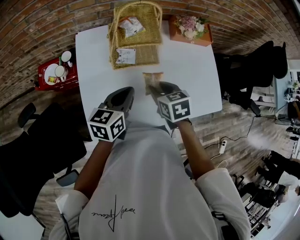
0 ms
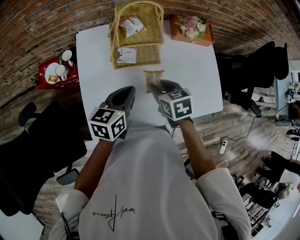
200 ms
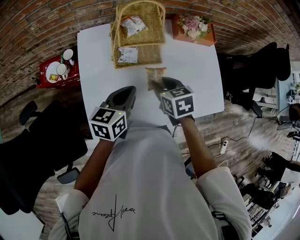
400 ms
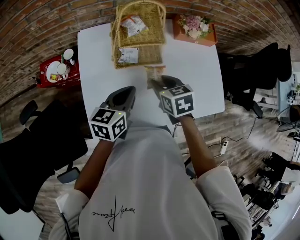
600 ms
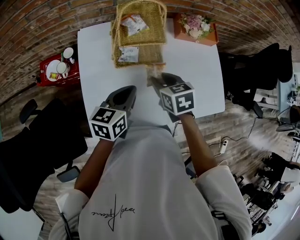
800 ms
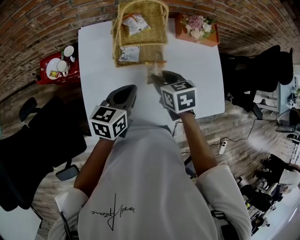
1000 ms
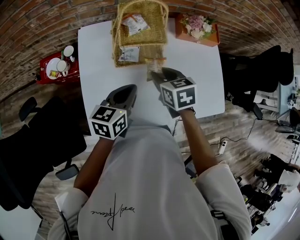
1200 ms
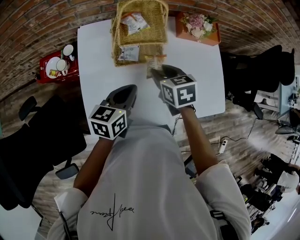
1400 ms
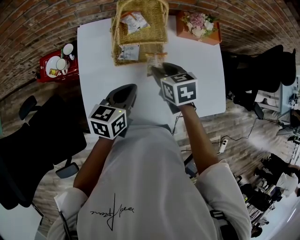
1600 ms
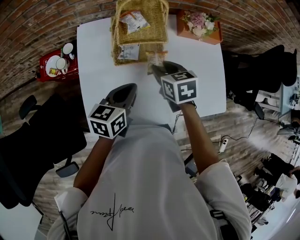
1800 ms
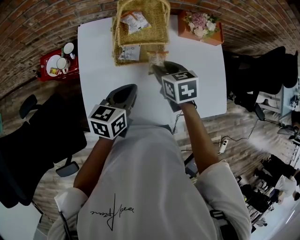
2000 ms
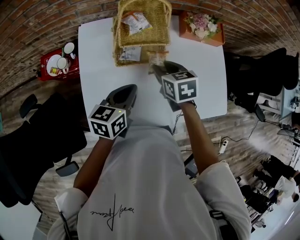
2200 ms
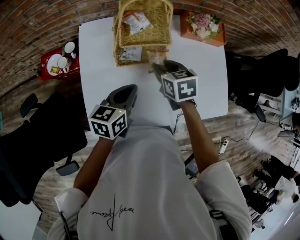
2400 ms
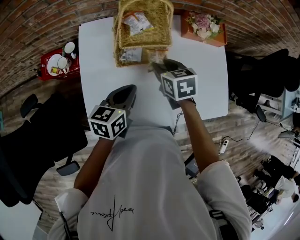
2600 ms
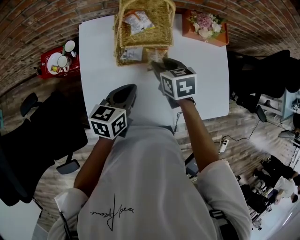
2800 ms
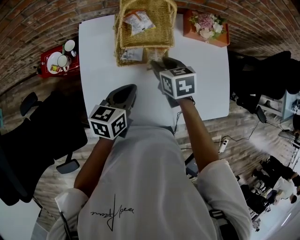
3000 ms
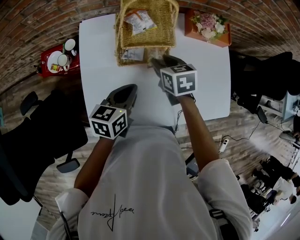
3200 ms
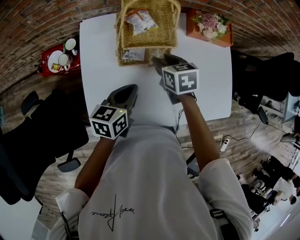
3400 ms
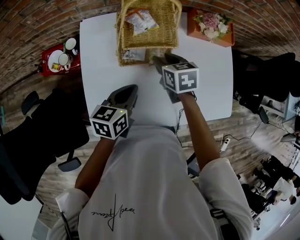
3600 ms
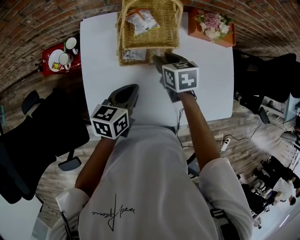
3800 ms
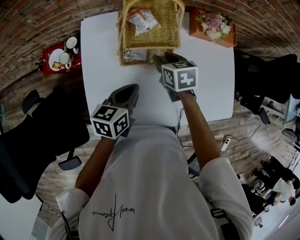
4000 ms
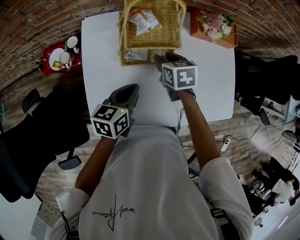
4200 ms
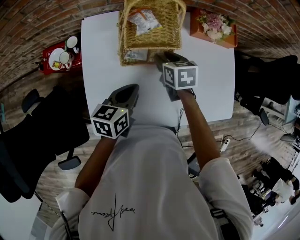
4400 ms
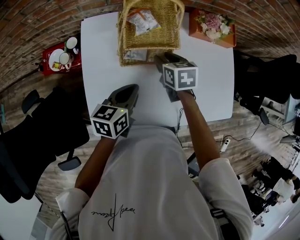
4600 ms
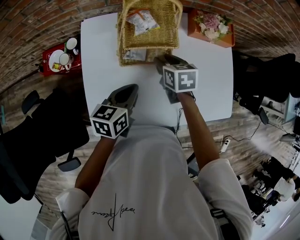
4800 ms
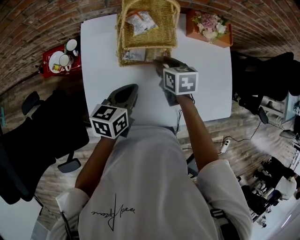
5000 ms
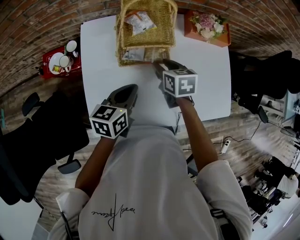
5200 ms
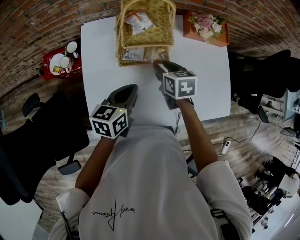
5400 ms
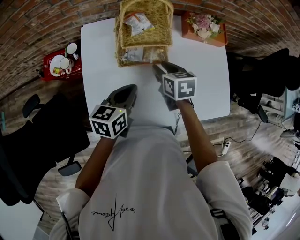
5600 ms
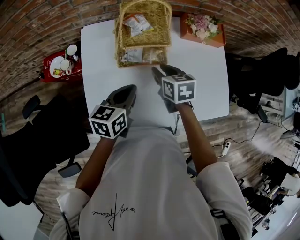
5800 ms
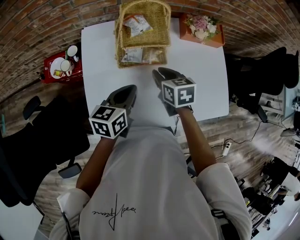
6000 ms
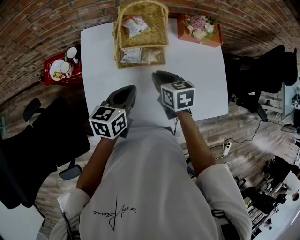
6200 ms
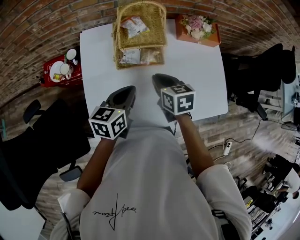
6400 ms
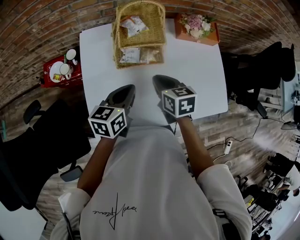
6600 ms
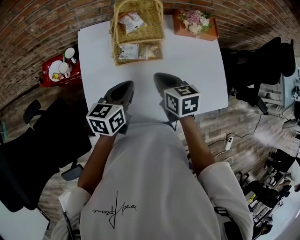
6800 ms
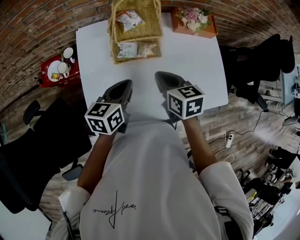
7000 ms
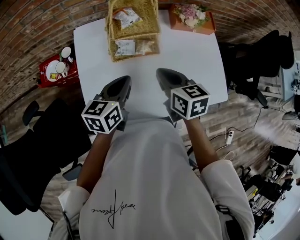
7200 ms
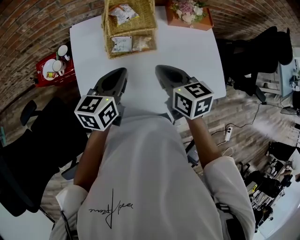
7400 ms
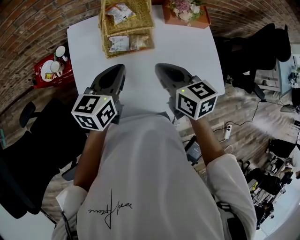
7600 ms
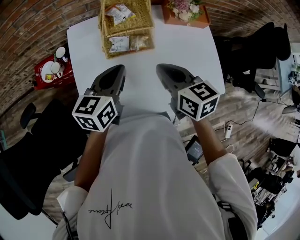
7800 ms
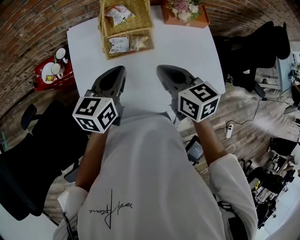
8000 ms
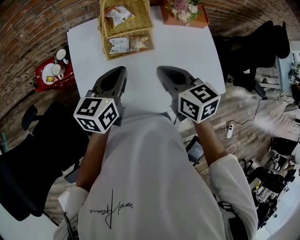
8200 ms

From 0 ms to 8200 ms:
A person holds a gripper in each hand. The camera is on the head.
From 0 ms to 1600 ms: The right gripper goes approximately 5 cm forward.
From 1600 ms to 3200 ms: The right gripper shifts by approximately 5 cm.
From 3200 ms to 5000 ms: The grippers make only small movements.
From 5000 ms to 6600 ms: The right gripper moves backward, some 10 cm, and closes its fingers.
From 6600 ms to 8200 ms: The left gripper heads upward, covering some 5 cm, while the right gripper is displaced upward by approximately 10 cm.

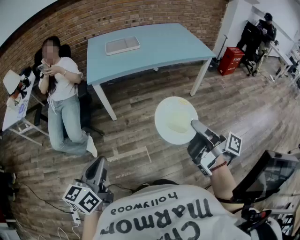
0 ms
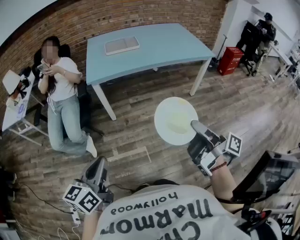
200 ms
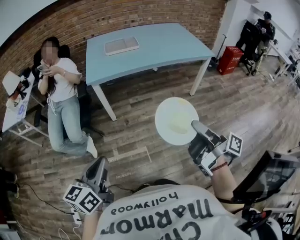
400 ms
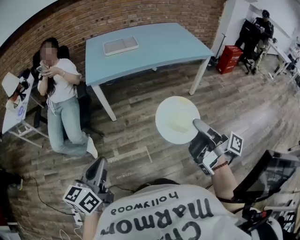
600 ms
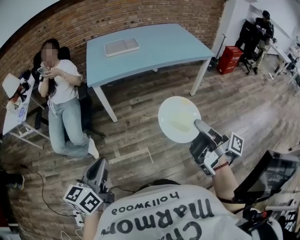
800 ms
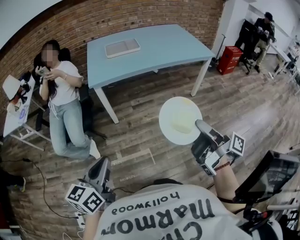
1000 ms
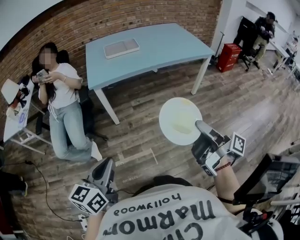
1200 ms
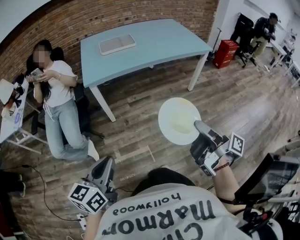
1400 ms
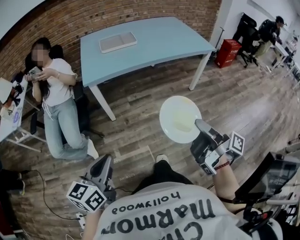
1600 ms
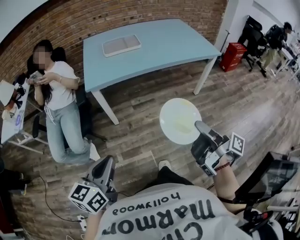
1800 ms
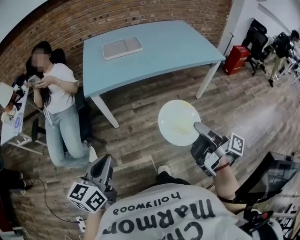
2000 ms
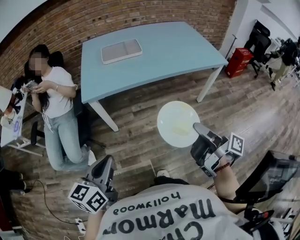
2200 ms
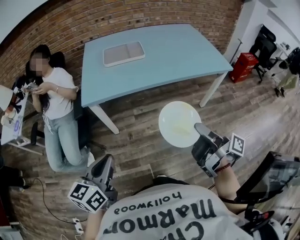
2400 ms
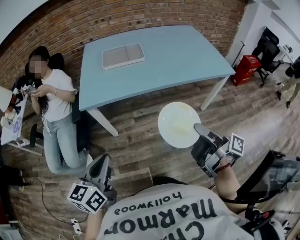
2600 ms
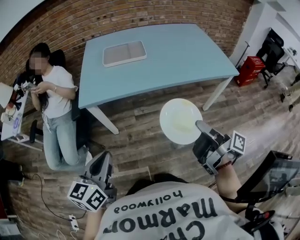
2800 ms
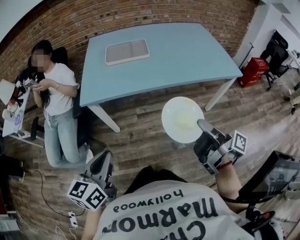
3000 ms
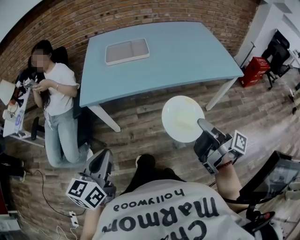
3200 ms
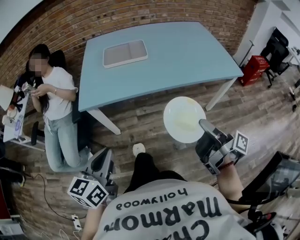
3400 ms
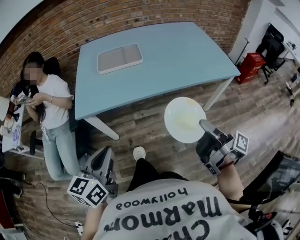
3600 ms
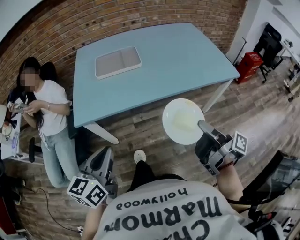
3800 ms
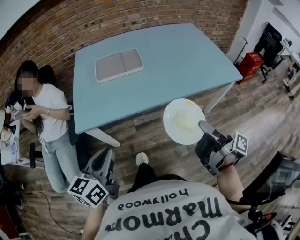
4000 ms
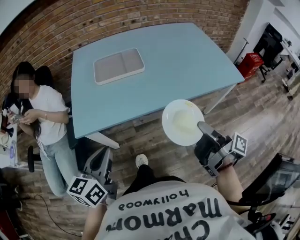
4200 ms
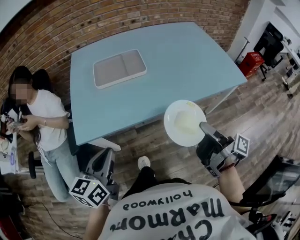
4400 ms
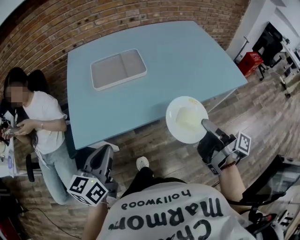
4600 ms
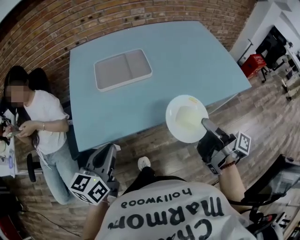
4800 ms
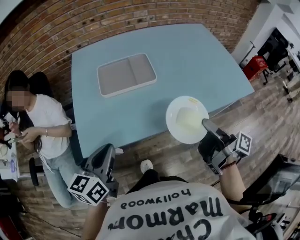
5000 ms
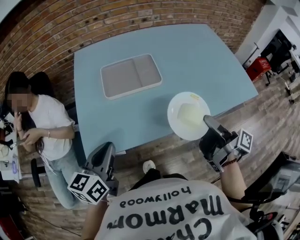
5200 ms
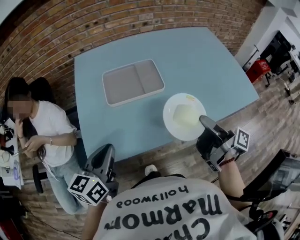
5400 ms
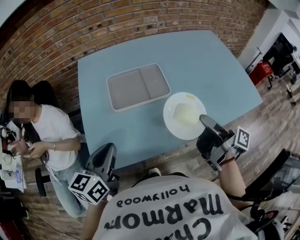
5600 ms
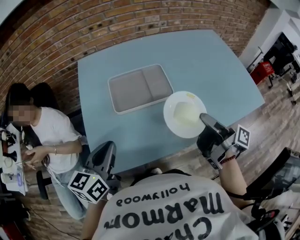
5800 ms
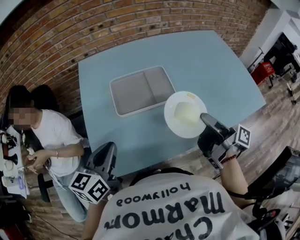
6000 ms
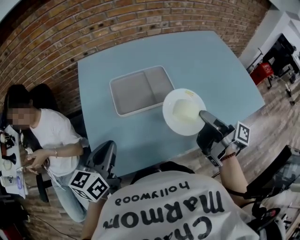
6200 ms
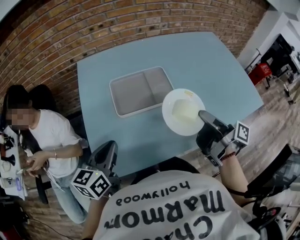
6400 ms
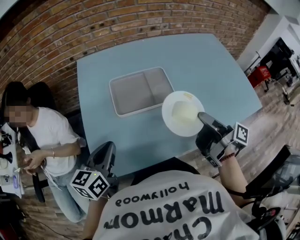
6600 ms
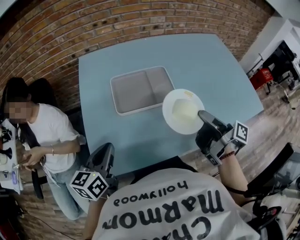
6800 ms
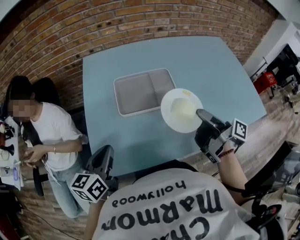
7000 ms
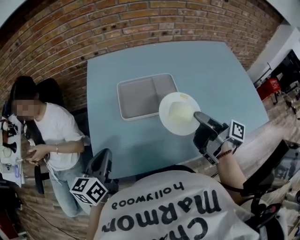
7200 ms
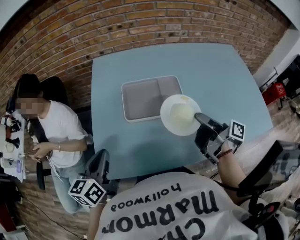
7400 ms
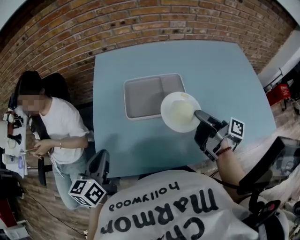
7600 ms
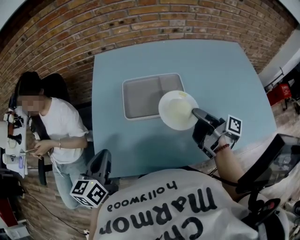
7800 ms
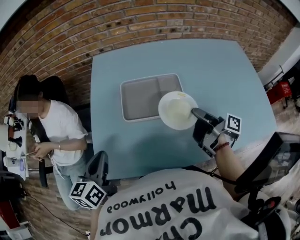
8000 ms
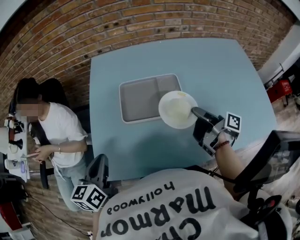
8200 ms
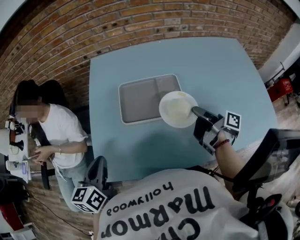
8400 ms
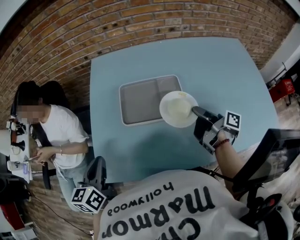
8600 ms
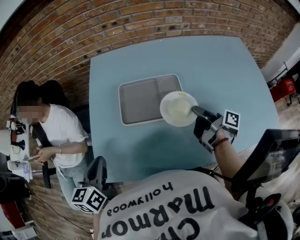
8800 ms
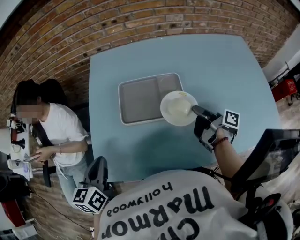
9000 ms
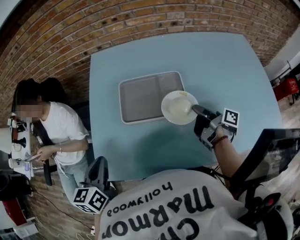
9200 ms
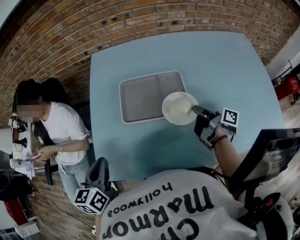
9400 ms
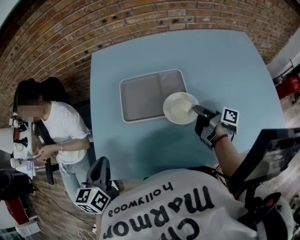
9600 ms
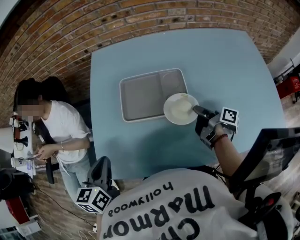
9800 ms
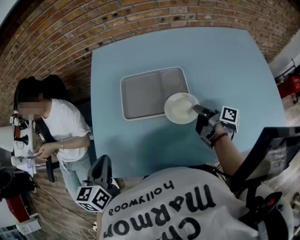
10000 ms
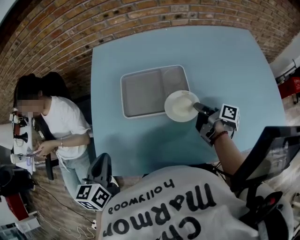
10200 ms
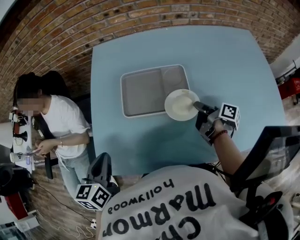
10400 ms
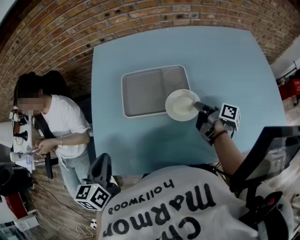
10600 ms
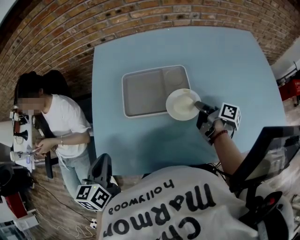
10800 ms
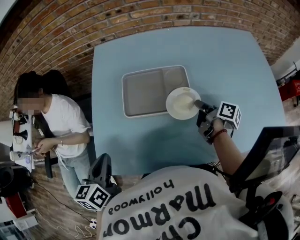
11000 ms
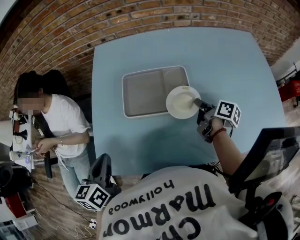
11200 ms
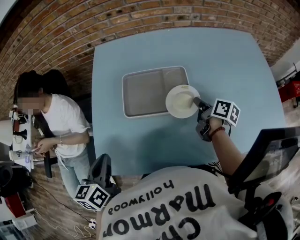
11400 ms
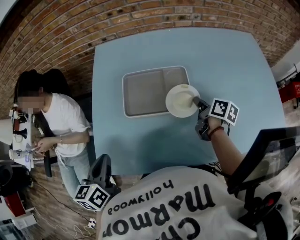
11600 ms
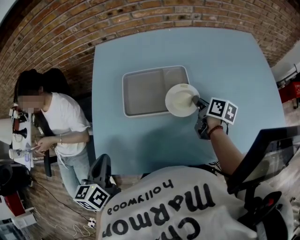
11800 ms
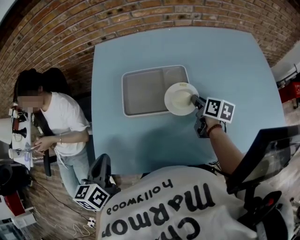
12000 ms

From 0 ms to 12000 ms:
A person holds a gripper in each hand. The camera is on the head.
From 0 ms to 1600 ms: The left gripper moves approximately 5 cm.
From 1600 ms to 3000 ms: The left gripper changes place by approximately 25 cm.
From 3000 ms to 4400 ms: The left gripper ends up about 25 cm from where it was.
From 4400 ms to 6000 ms: The left gripper changes place by roughly 25 cm.
From 6000 ms to 7600 ms: The left gripper ends up some 5 cm from where it was.

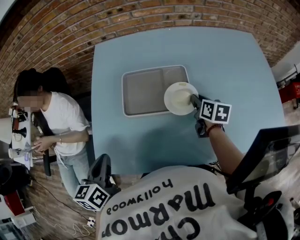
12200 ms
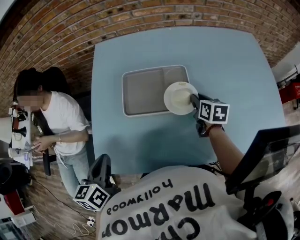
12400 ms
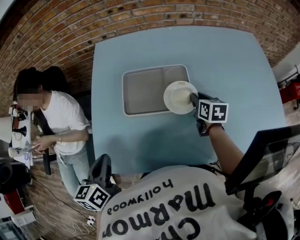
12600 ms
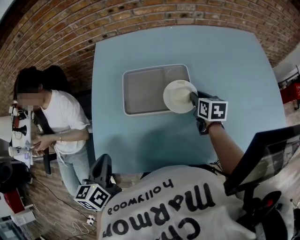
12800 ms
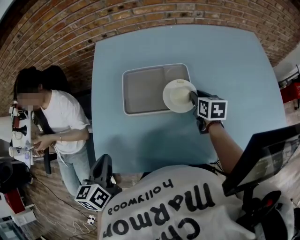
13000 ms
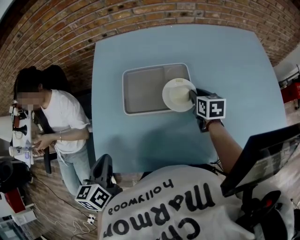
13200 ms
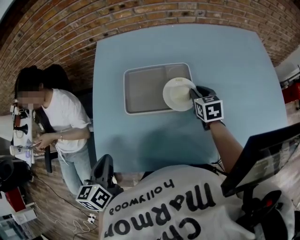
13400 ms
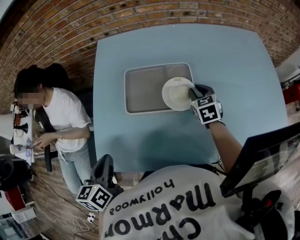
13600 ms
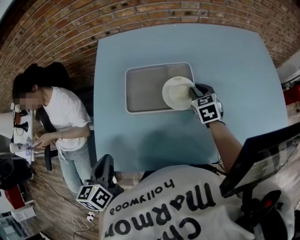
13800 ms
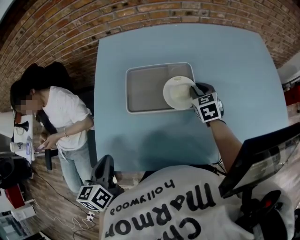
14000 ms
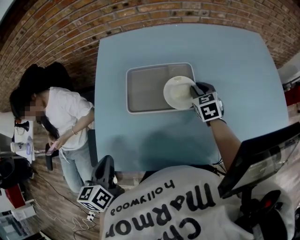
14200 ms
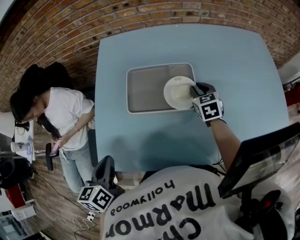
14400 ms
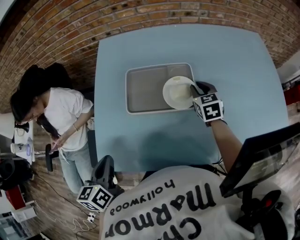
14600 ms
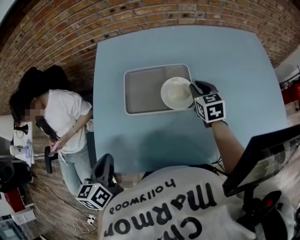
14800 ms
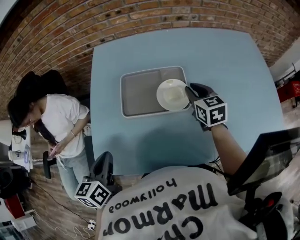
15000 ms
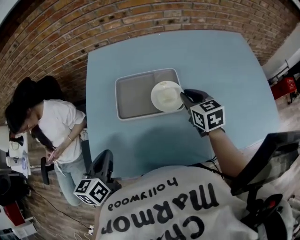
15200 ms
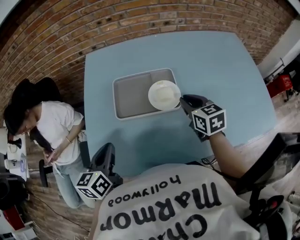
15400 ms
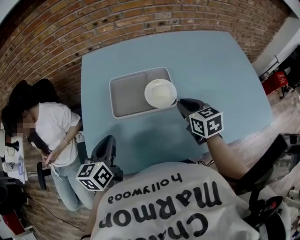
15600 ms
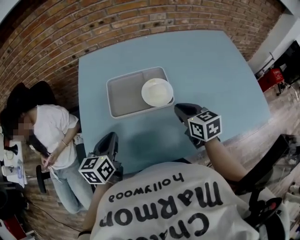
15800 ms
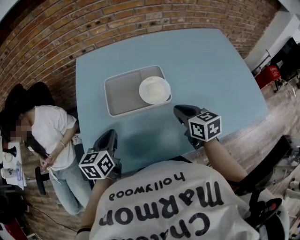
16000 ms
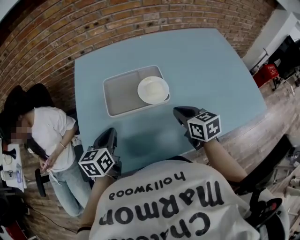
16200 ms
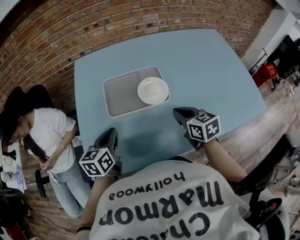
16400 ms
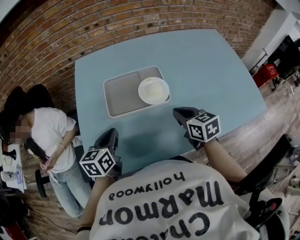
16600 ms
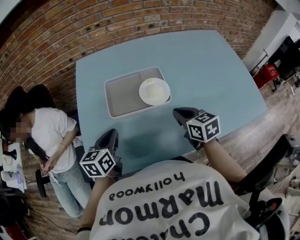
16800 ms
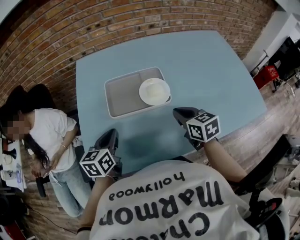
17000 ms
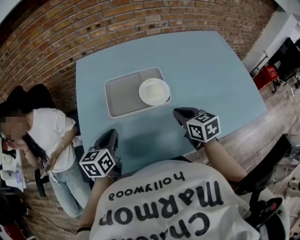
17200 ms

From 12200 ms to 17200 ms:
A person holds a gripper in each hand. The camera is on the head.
From 13800 ms to 15600 ms: The left gripper changes place by roughly 10 cm.
